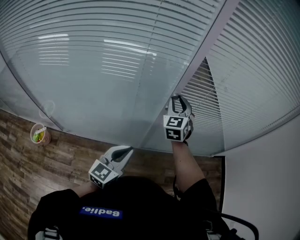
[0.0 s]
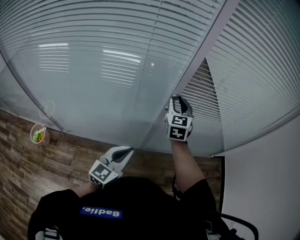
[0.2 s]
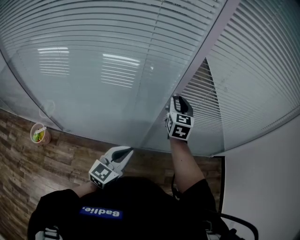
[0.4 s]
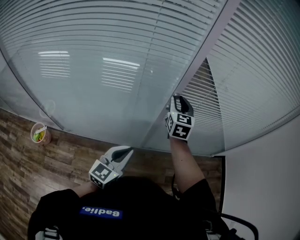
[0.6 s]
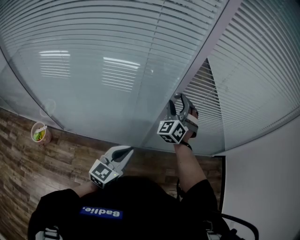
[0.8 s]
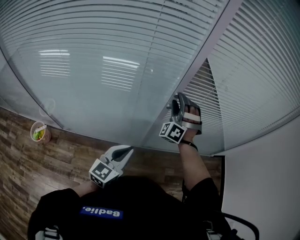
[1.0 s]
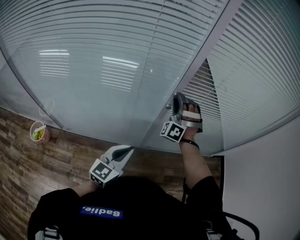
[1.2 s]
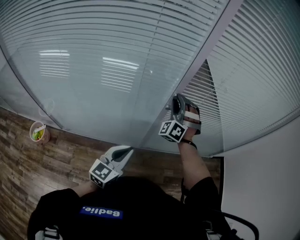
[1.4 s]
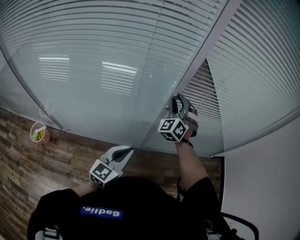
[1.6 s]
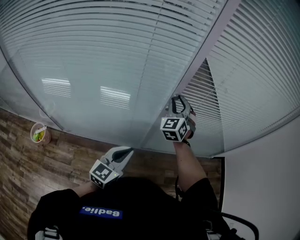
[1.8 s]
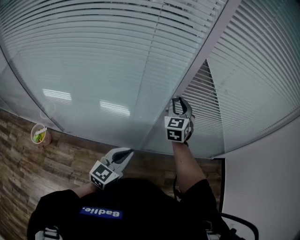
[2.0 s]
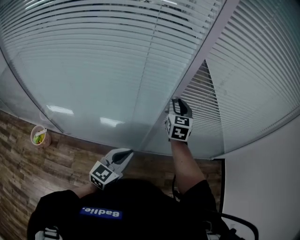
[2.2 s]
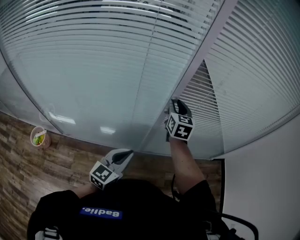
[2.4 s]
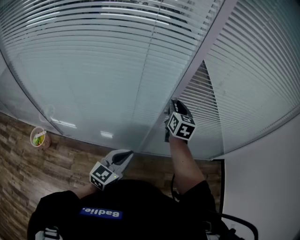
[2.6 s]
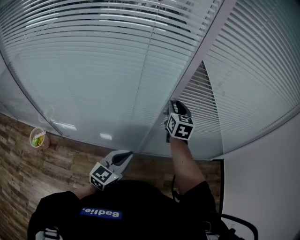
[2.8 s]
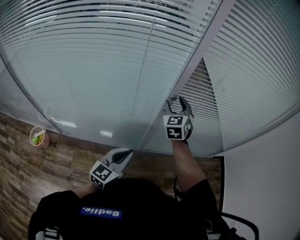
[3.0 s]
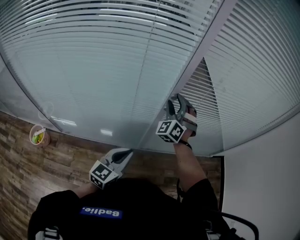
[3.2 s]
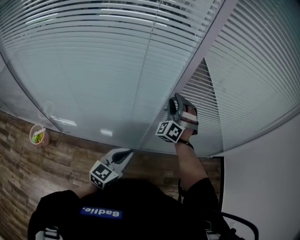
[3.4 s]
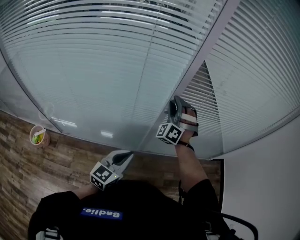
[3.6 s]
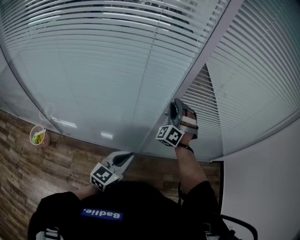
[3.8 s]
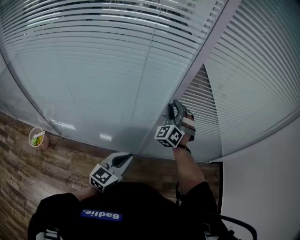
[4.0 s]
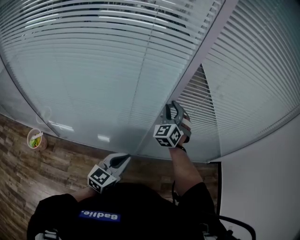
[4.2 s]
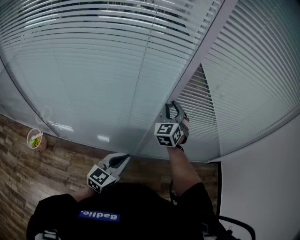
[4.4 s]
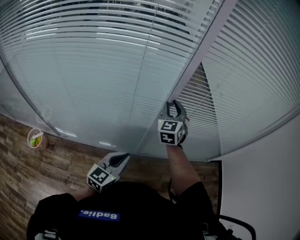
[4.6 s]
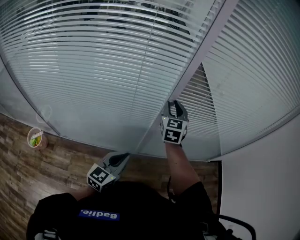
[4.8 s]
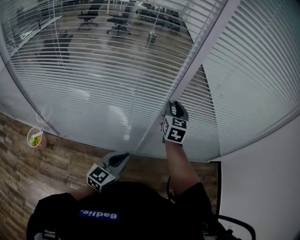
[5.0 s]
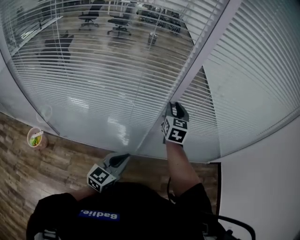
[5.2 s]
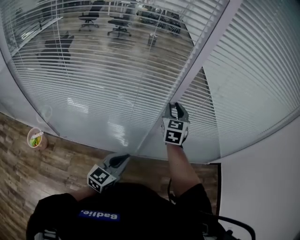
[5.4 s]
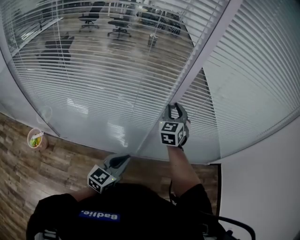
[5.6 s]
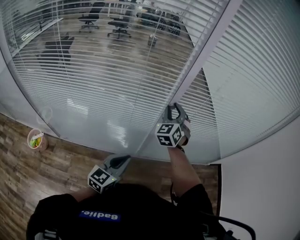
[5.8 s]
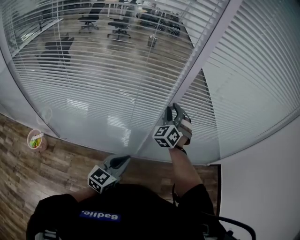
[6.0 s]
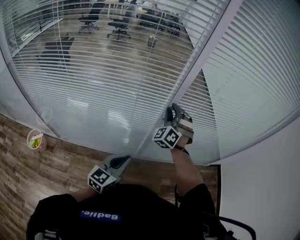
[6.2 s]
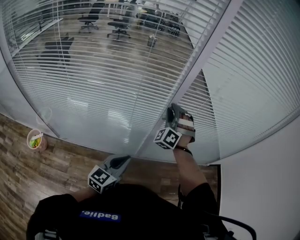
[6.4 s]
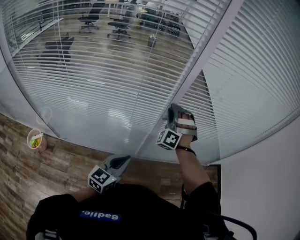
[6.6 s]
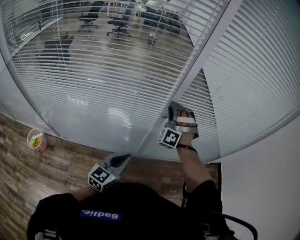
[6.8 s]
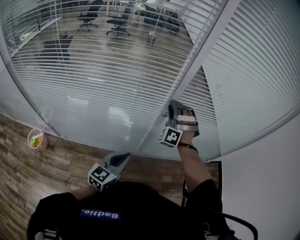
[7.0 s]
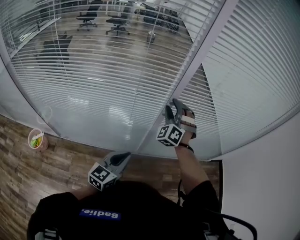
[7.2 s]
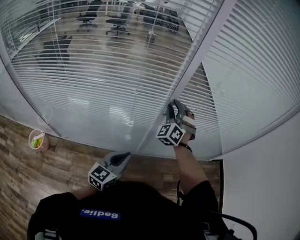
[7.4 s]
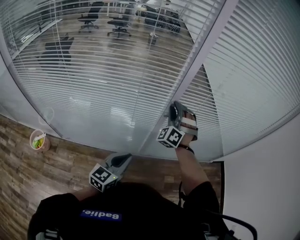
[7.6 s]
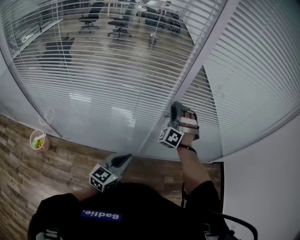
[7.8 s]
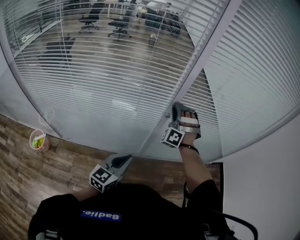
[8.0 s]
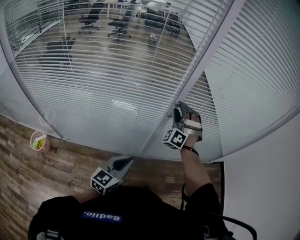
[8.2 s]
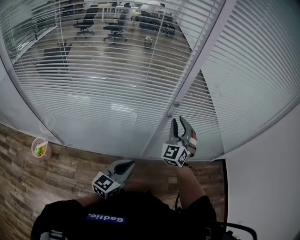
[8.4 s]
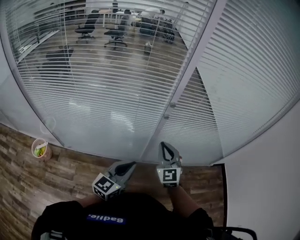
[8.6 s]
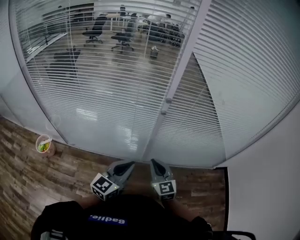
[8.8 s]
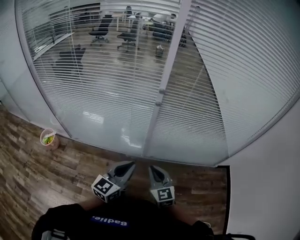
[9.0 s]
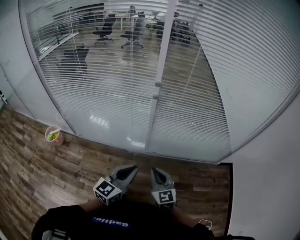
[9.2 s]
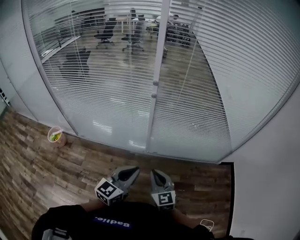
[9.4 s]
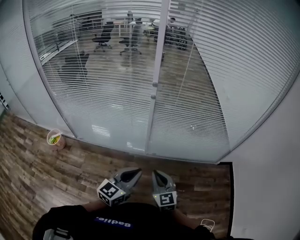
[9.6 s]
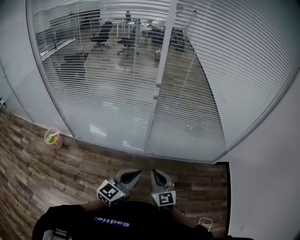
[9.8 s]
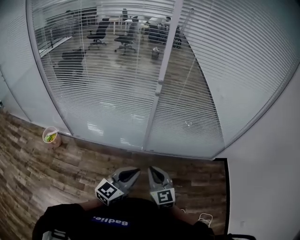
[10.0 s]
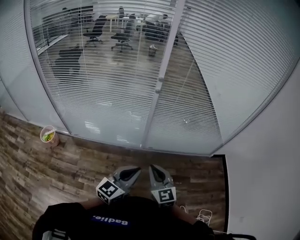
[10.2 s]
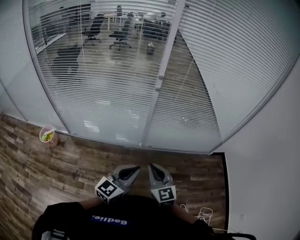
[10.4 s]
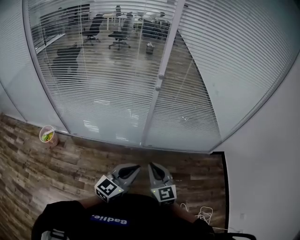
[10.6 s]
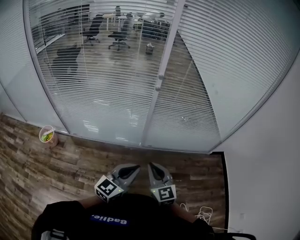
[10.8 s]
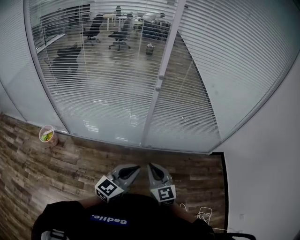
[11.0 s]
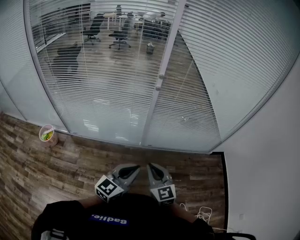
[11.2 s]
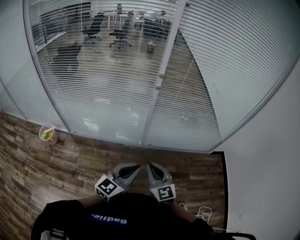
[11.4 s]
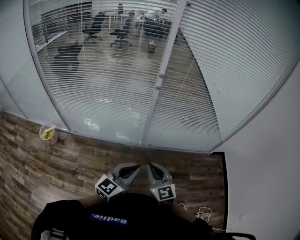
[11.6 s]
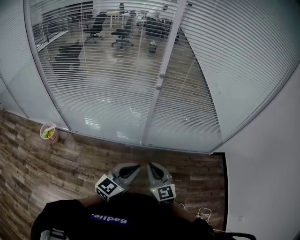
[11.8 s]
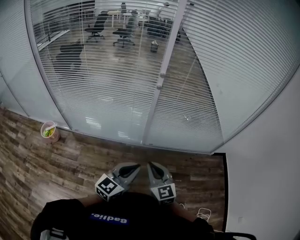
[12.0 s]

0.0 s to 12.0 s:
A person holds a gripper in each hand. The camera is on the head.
0.0 to 1.6 s: The right gripper changes its angle by about 30 degrees, and opens, then closes again.
1.6 to 3.0 s: The right gripper rotates about 30 degrees, and opens up.
3.0 to 4.4 s: The right gripper closes its fingers.
7.6 to 9.0 s: The right gripper moves backward, roughly 30 cm, rotates around the line of its fingers by roughly 60 degrees, clockwise from behind, and closes; the left gripper travels backward, to the right and upward by roughly 15 cm.
9.0 to 10.4 s: Both grippers move backward, some 10 cm.
10.4 to 12.0 s: Both grippers stay about where they are.

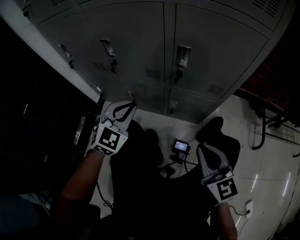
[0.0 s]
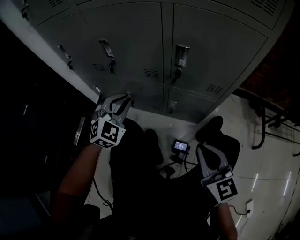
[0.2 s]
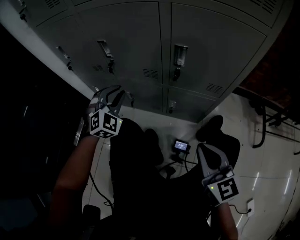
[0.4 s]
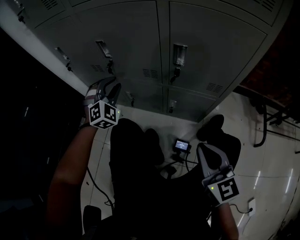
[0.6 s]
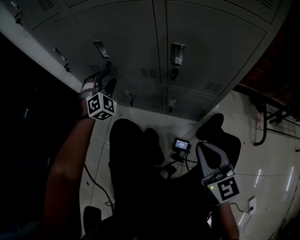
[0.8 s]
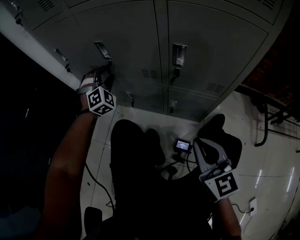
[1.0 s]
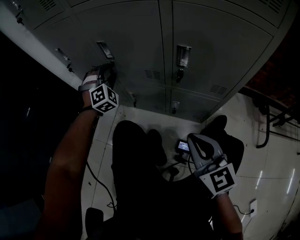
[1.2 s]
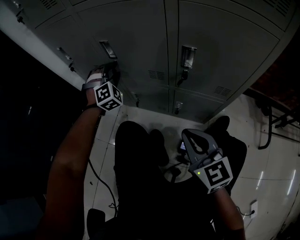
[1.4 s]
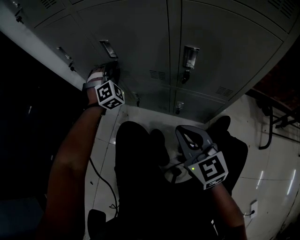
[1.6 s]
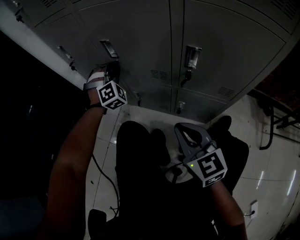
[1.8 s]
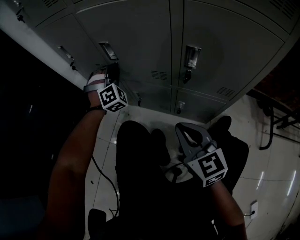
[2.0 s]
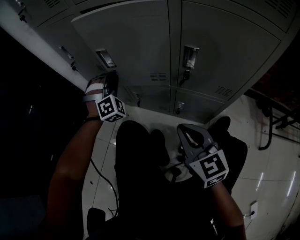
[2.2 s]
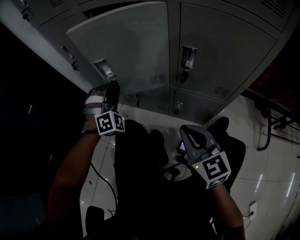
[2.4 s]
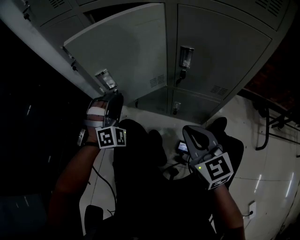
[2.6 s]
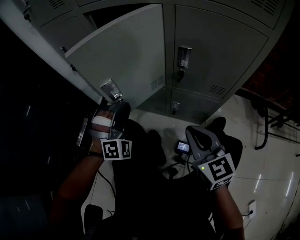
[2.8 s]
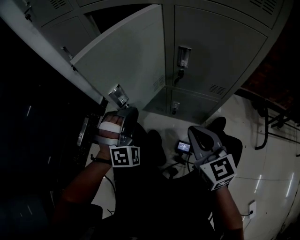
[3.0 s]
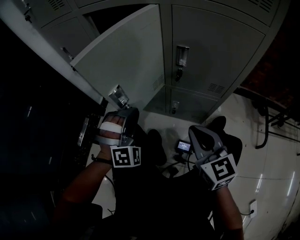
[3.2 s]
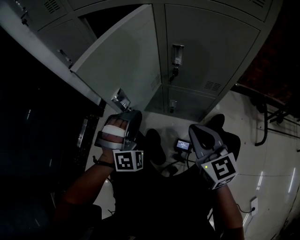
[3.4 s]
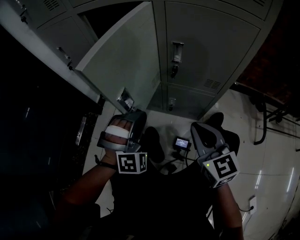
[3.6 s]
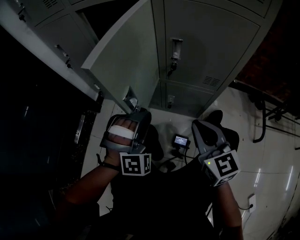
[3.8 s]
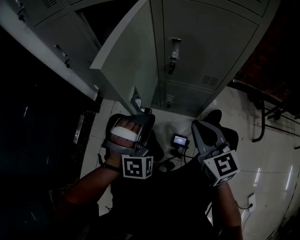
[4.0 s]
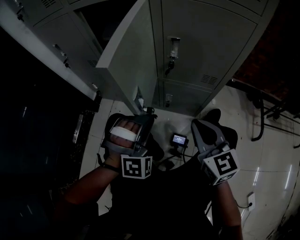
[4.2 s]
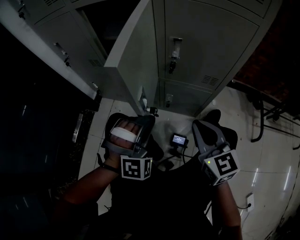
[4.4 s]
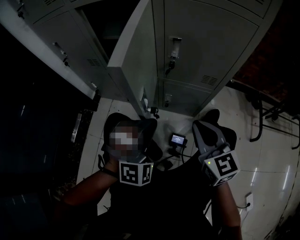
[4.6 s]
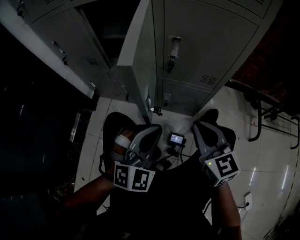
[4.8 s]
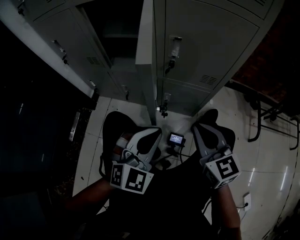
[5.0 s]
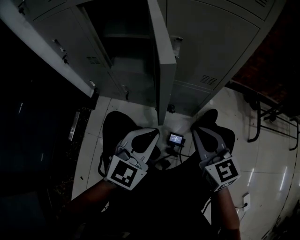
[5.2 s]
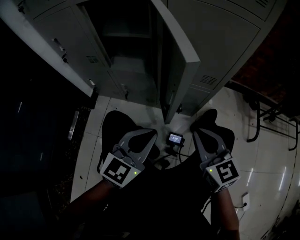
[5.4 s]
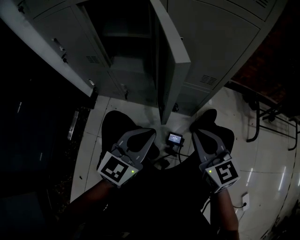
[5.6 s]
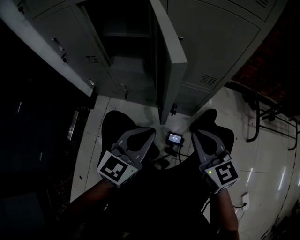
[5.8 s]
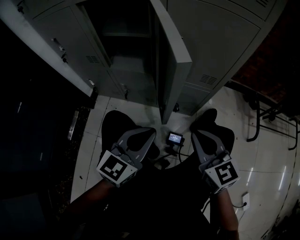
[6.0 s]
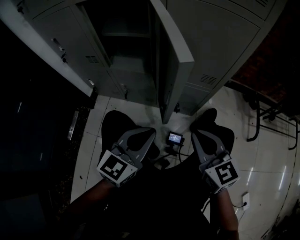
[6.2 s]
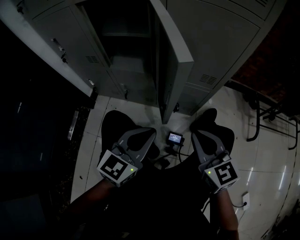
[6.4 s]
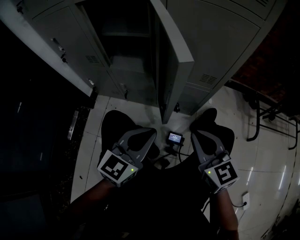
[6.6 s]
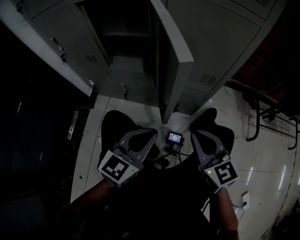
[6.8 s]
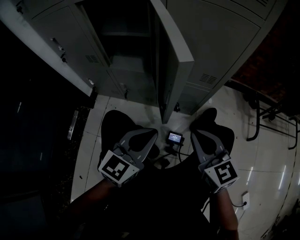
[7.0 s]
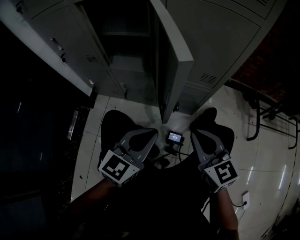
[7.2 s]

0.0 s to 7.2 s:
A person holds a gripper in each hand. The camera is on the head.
0.0 to 1.4 s: The left gripper heads forward, covering some 20 cm, changes its angle by roughly 50 degrees, and opens its fingers. The right gripper shifts about 10 cm forward and to the left.
1.4 to 2.8 s: The left gripper shifts some 20 cm backward, and closes.
2.8 to 4.4 s: The left gripper is displaced to the right and backward by about 15 cm.
4.4 to 5.8 s: The left gripper shifts by roughly 5 cm, and rotates around the line of its fingers by approximately 70 degrees, counterclockwise from behind.
5.8 to 7.2 s: The grippers move only a little.

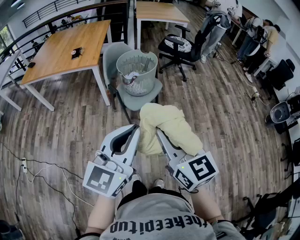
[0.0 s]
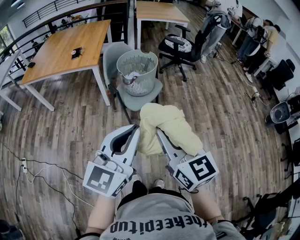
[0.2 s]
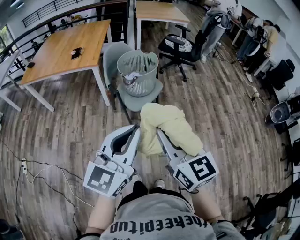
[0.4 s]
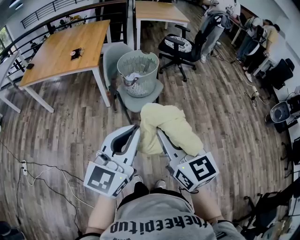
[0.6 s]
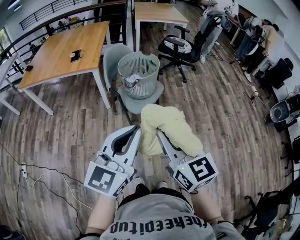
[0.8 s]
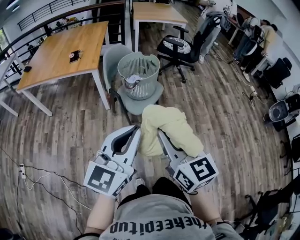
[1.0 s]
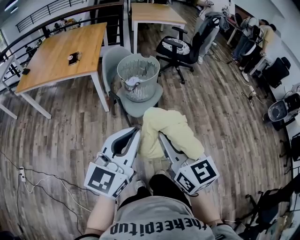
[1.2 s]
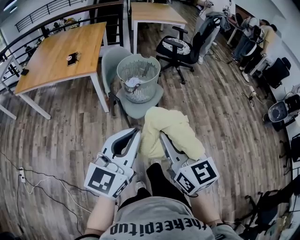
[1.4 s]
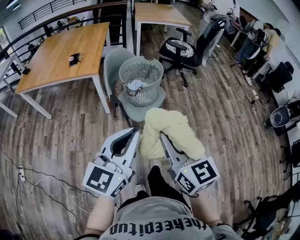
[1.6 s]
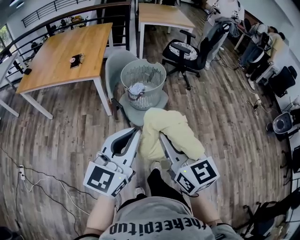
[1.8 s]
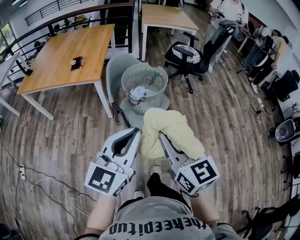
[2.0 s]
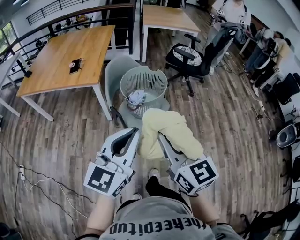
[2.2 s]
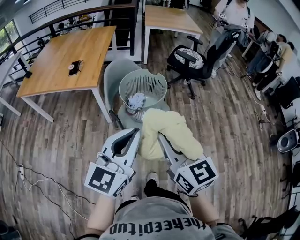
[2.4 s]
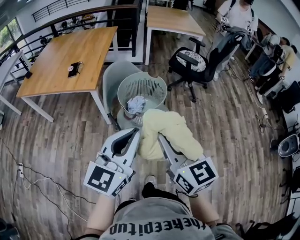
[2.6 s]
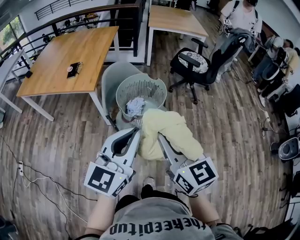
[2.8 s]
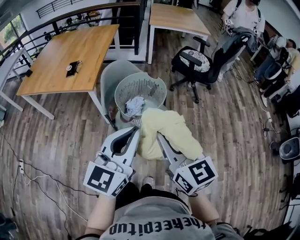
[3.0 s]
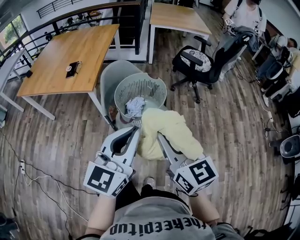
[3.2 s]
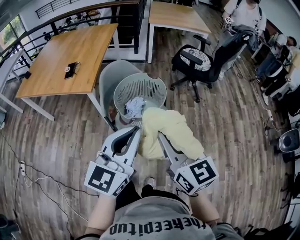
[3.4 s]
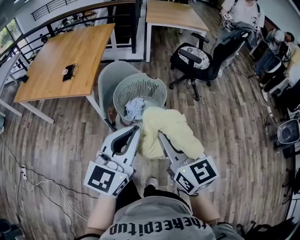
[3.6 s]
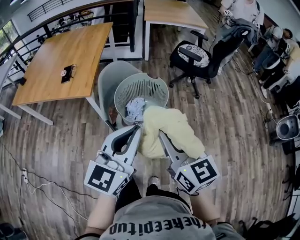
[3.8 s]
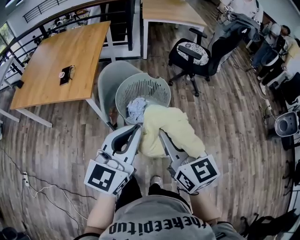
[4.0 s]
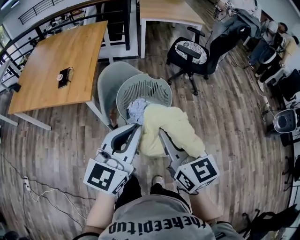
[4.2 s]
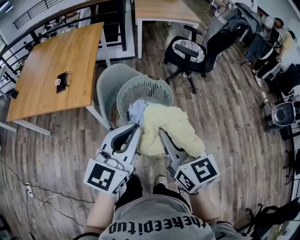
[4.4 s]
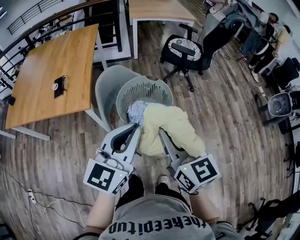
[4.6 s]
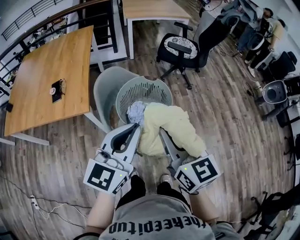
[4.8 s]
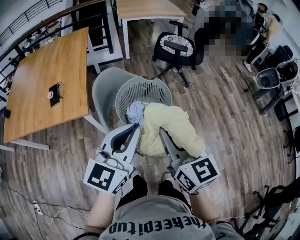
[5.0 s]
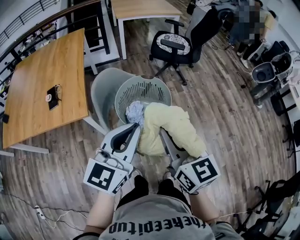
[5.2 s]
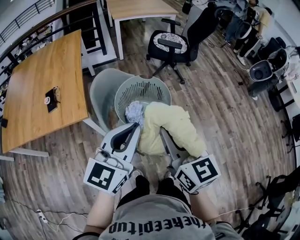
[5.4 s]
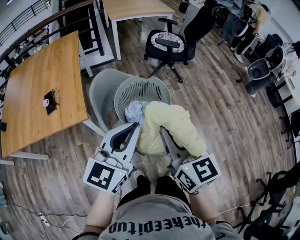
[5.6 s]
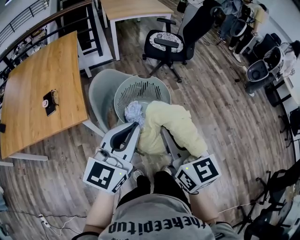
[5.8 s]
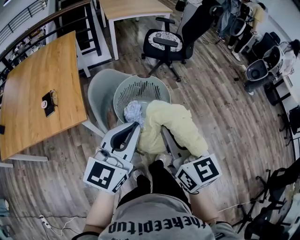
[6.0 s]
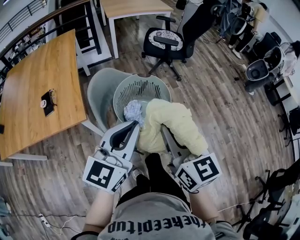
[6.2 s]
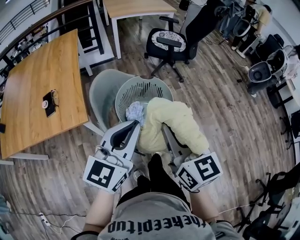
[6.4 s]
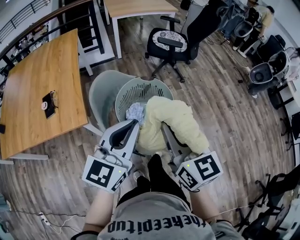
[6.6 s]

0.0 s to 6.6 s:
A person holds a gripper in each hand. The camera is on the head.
0.0 to 1.6 s: The left gripper shifts approximately 10 cm forward and to the left. Meanwhile the right gripper heads forward, covering approximately 10 cm.
1.6 to 3.2 s: The two grippers go about 20 cm forward.
3.2 to 5.0 s: The right gripper moves to the left and forward, about 15 cm, and swivels some 20 degrees; the left gripper is displaced forward and to the left by about 15 cm.
5.0 to 6.6 s: The left gripper moves approximately 5 cm.
